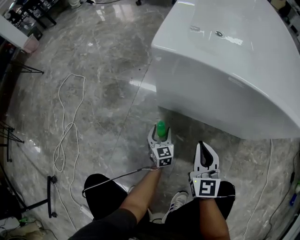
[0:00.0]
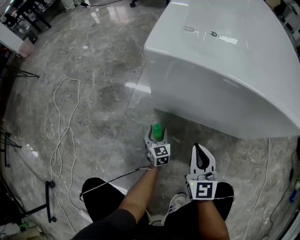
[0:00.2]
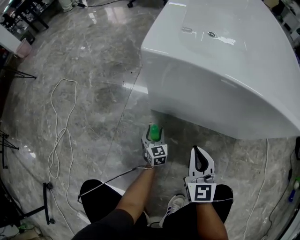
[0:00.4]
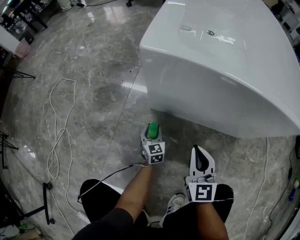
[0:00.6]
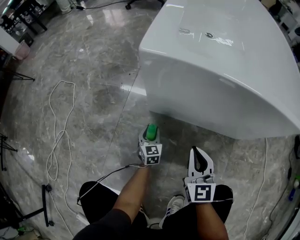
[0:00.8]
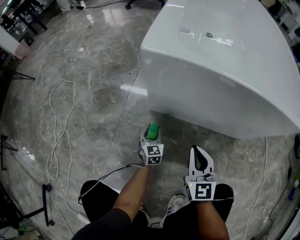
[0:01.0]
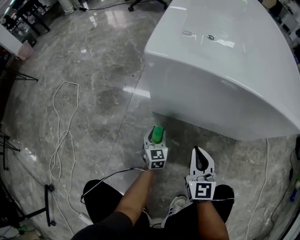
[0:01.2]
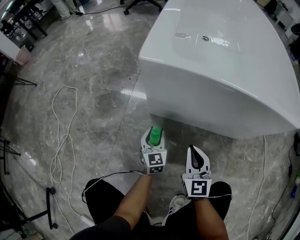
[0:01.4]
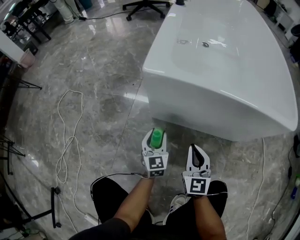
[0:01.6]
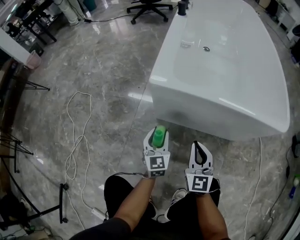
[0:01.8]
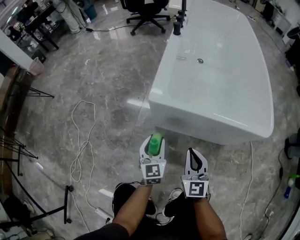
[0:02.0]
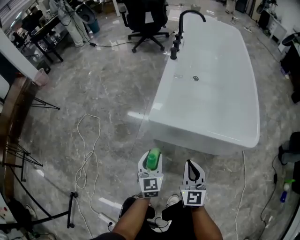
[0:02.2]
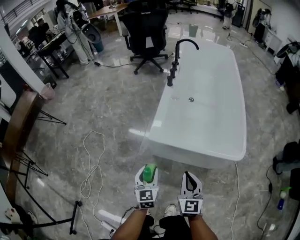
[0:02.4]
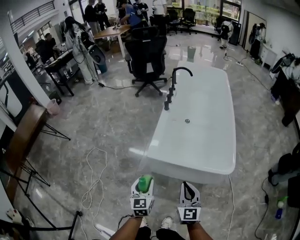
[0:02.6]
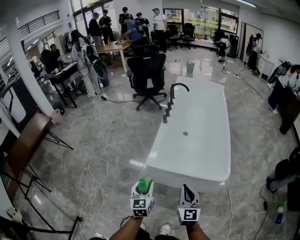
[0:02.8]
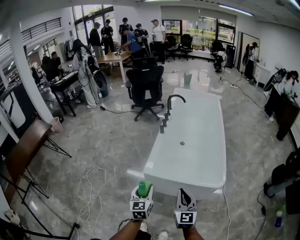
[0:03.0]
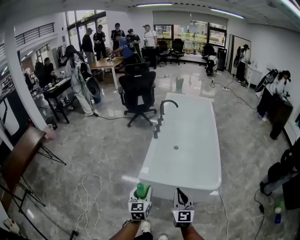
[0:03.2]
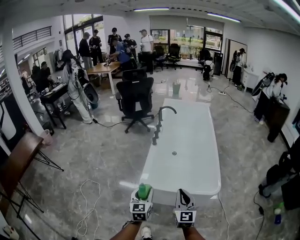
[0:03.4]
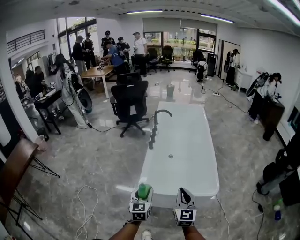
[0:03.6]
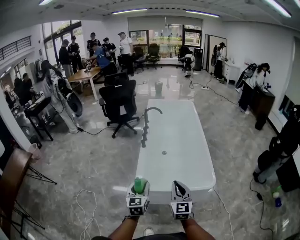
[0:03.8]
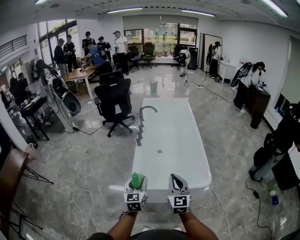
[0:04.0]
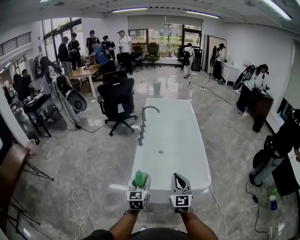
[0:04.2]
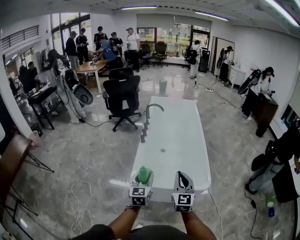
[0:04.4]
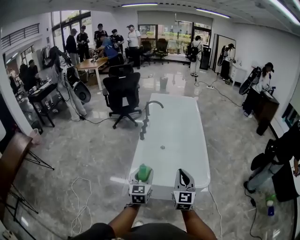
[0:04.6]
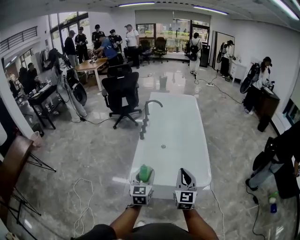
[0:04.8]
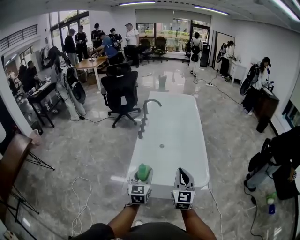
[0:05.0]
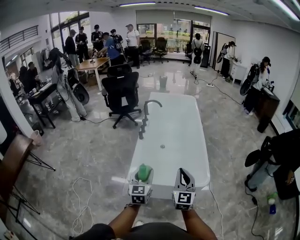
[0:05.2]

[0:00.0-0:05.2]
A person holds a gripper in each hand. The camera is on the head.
0:00.0 to 0:01.8: The left gripper is displaced upward by some 25 cm. The right gripper is displaced upward by approximately 15 cm.
0:01.8 to 0:03.4: The two grippers go some 60 cm upward.
0:03.4 to 0:05.2: Both grippers move to the right, upward and forward, approximately 10 cm.

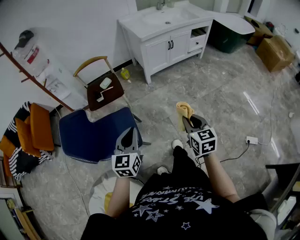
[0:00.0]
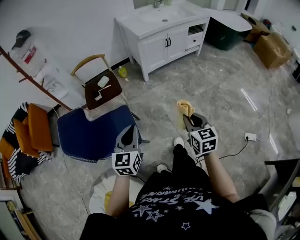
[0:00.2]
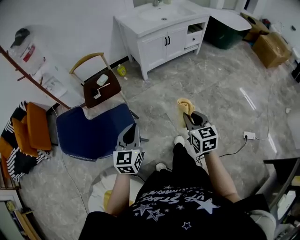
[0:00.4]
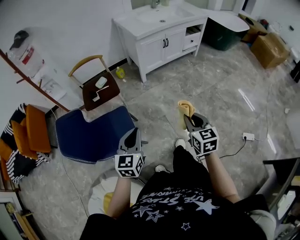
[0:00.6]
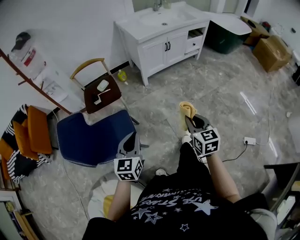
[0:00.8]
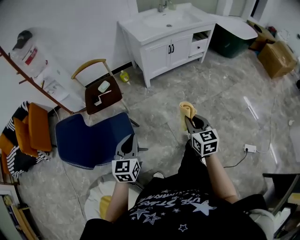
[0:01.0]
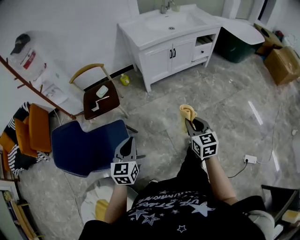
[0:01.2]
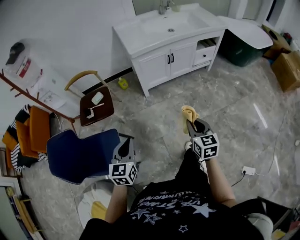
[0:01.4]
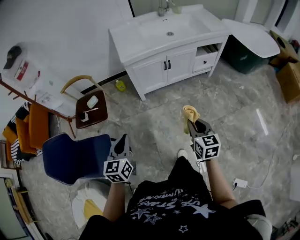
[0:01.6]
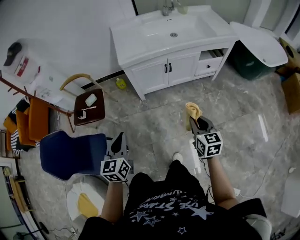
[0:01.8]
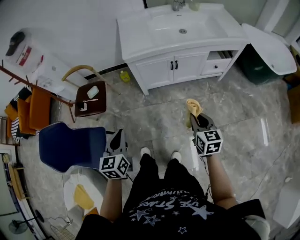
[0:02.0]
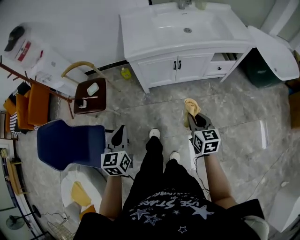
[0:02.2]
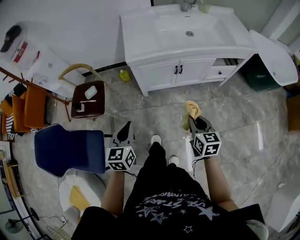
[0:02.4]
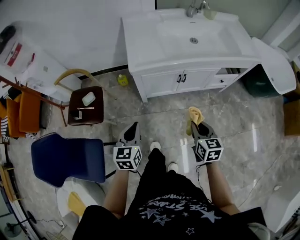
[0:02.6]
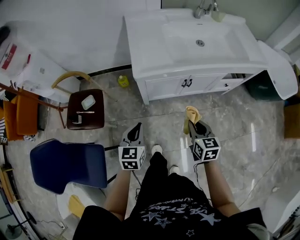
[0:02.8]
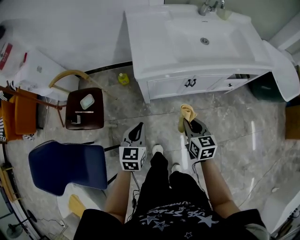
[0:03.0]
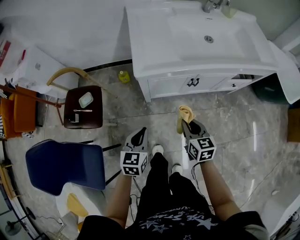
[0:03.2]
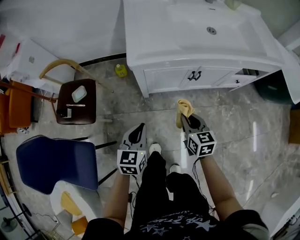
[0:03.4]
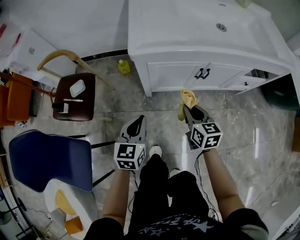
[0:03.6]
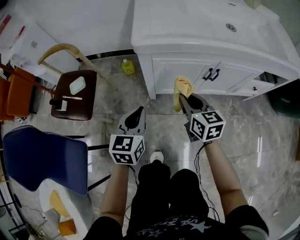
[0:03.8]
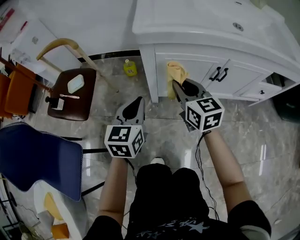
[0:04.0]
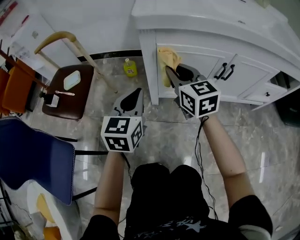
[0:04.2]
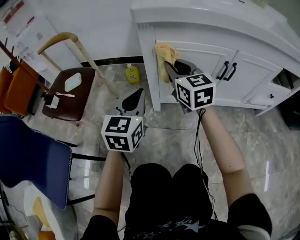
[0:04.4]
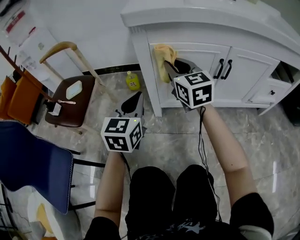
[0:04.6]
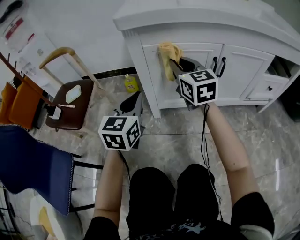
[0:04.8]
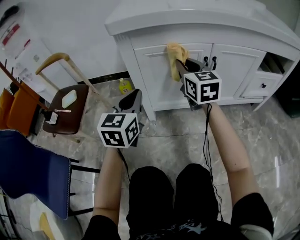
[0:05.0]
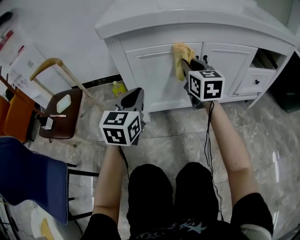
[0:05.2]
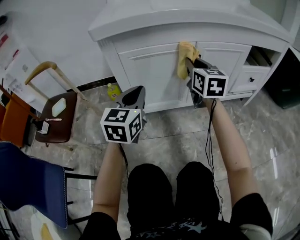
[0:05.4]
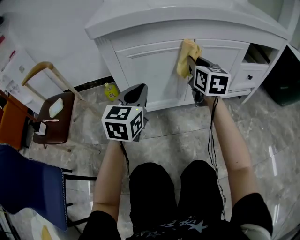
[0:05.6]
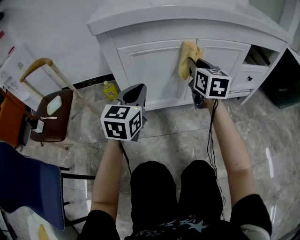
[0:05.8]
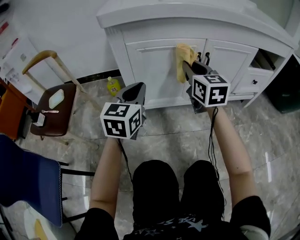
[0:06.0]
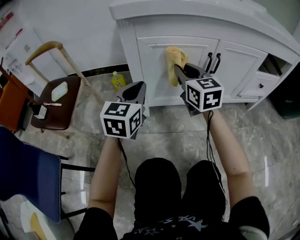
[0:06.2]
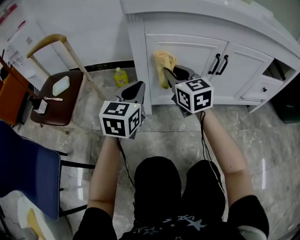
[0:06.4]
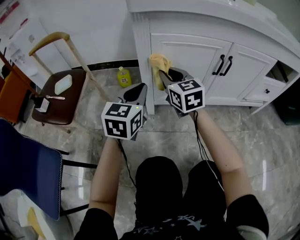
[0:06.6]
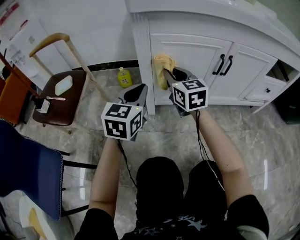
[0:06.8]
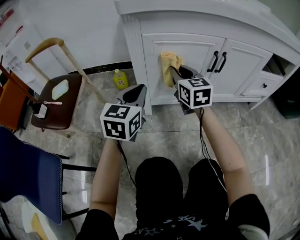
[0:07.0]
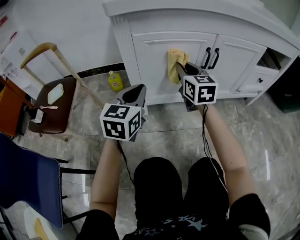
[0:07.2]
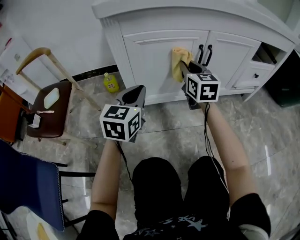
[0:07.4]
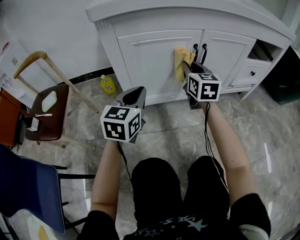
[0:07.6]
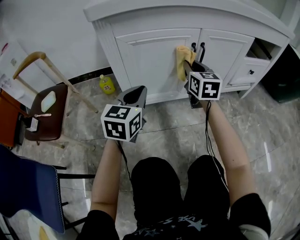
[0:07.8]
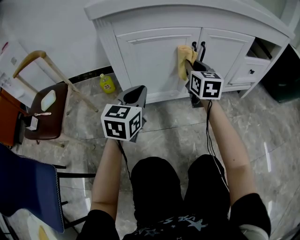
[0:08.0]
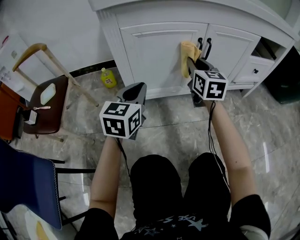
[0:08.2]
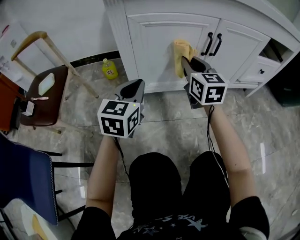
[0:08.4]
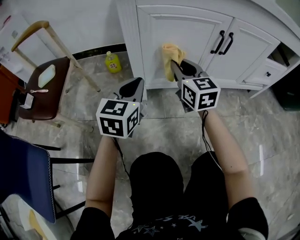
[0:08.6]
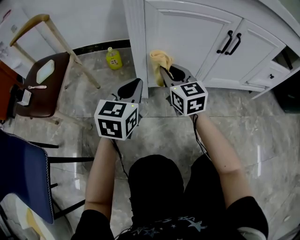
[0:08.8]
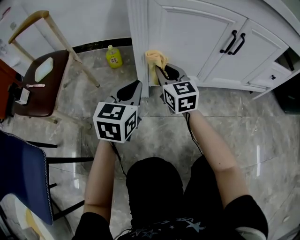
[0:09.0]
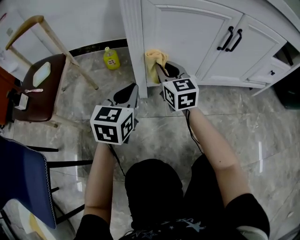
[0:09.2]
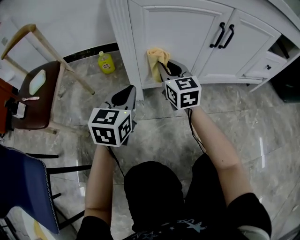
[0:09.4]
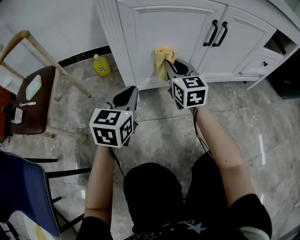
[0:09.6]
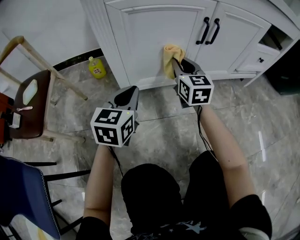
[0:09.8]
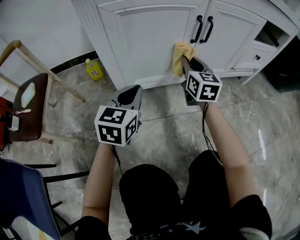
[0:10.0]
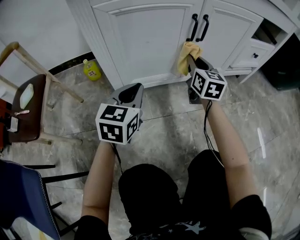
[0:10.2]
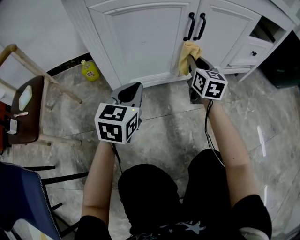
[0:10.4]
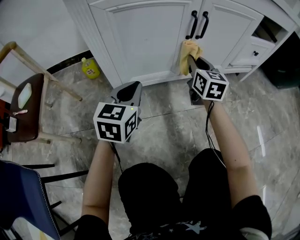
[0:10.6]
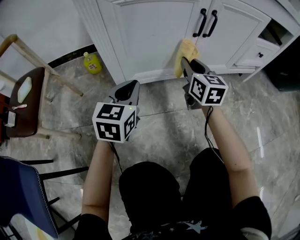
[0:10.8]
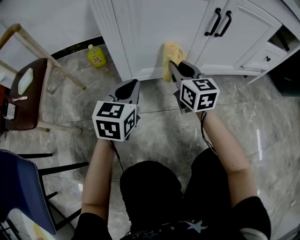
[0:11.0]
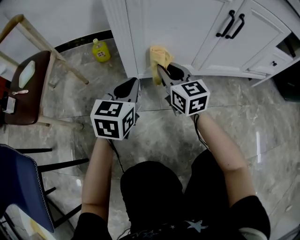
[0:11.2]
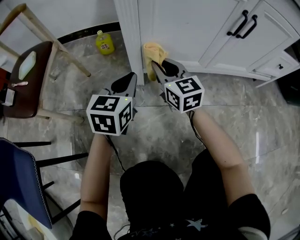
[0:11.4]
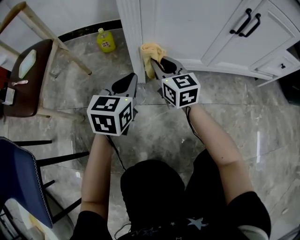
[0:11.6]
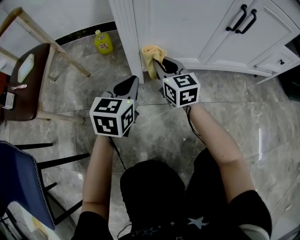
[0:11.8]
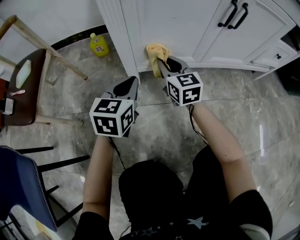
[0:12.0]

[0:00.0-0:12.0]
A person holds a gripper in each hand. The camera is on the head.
0:00.0 to 0:01.6: Both grippers travel together forward and to the right, approximately 40 cm.
0:01.6 to 0:03.0: The right gripper goes roughly 35 cm forward, while the left gripper goes approximately 35 cm forward and downward.
0:03.0 to 0:04.4: The right gripper moves forward, downward and to the left, roughly 30 cm, and rotates roughly 30 degrees. The left gripper travels downward by about 25 cm.
0:04.4 to 0:06.0: The left gripper travels to the right by some 10 cm; the right gripper goes about 15 cm to the right.
0:06.0 to 0:07.6: The right gripper shifts approximately 5 cm downward, and goes to the left and returns, some 15 cm each way, while the left gripper goes to the left and returns, approximately 5 cm each way.
0:07.6 to 0:09.0: The left gripper travels to the left and downward by about 10 cm. Meanwhile the right gripper moves to the left and downward, approximately 25 cm.
0:09.0 to 0:10.4: The left gripper shifts about 10 cm to the right. The right gripper moves to the right, roughly 25 cm, and swivels roughly 30 degrees.
0:10.4 to 0:12.0: The right gripper travels to the left and downward by about 25 cm, and rotates some 30 degrees; the left gripper heads to the left and downward, covering some 10 cm.

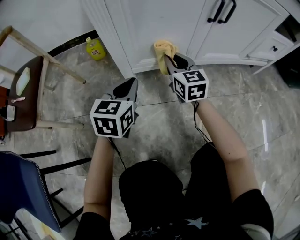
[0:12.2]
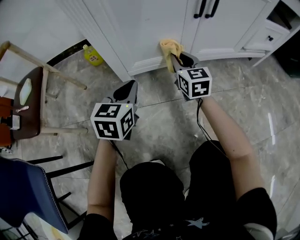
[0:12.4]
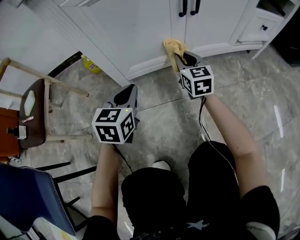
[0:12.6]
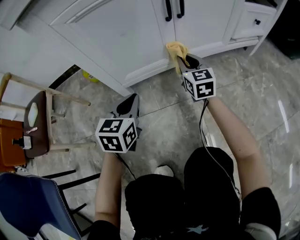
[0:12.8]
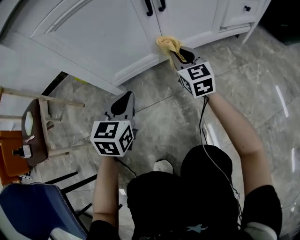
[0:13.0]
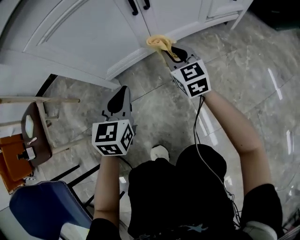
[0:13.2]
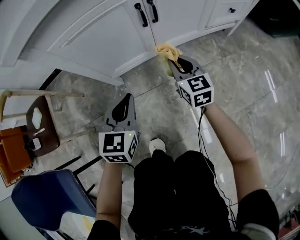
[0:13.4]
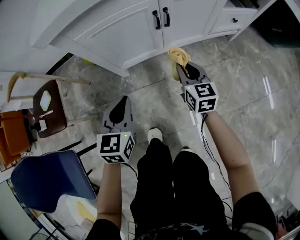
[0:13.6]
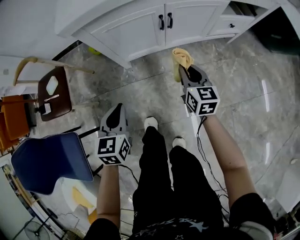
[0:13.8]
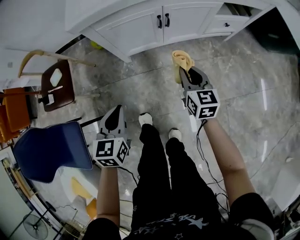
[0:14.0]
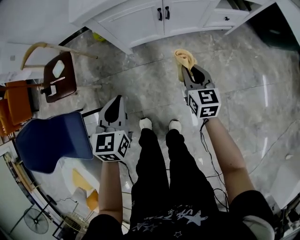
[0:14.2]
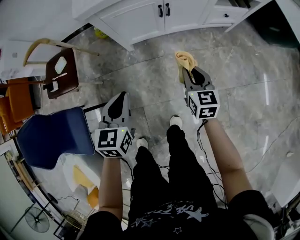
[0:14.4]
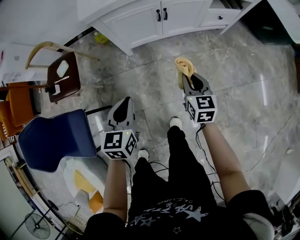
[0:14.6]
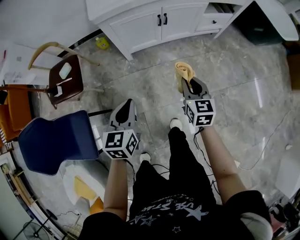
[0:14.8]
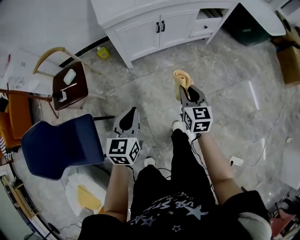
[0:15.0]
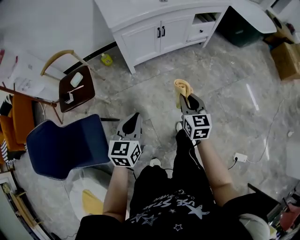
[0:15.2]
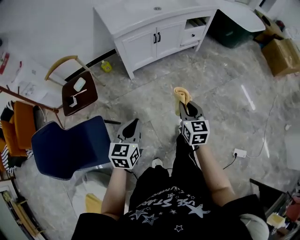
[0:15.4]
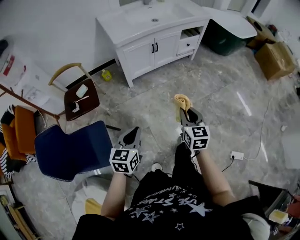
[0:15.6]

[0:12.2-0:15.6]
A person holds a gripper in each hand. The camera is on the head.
0:12.2 to 0:13.8: The left gripper is displaced upward and backward by some 35 cm, while the right gripper heads upward, to the right and backward, covering roughly 35 cm.
0:13.8 to 0:15.6: The pair of grippers is taken backward, approximately 50 cm. The two grippers go about 30 cm upward. The left gripper changes its angle by about 20 degrees.

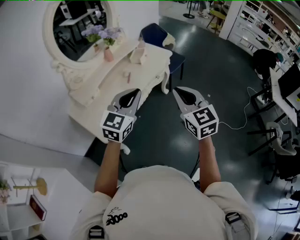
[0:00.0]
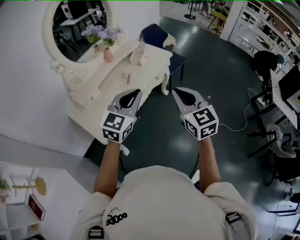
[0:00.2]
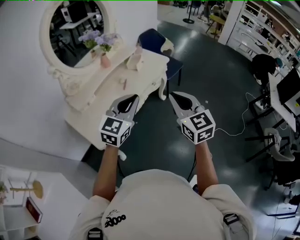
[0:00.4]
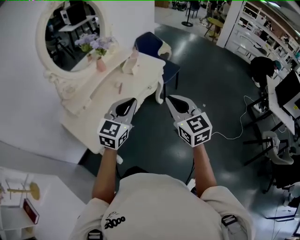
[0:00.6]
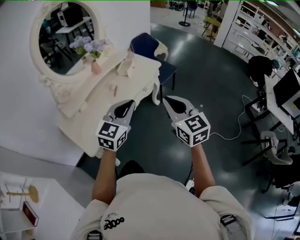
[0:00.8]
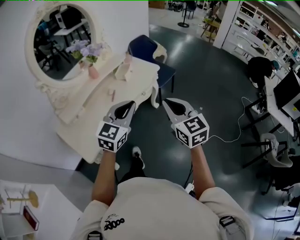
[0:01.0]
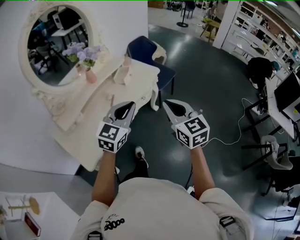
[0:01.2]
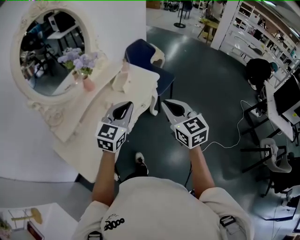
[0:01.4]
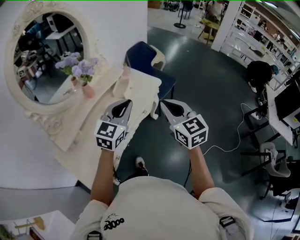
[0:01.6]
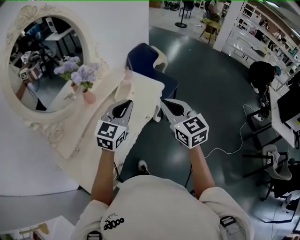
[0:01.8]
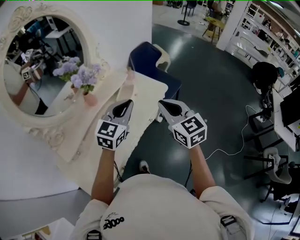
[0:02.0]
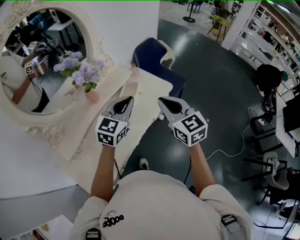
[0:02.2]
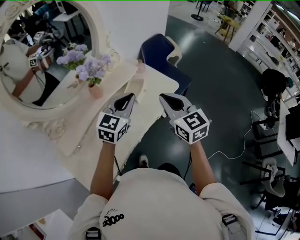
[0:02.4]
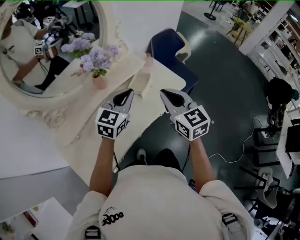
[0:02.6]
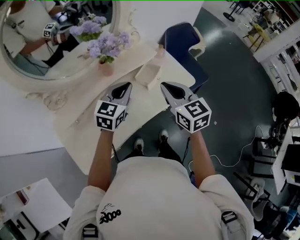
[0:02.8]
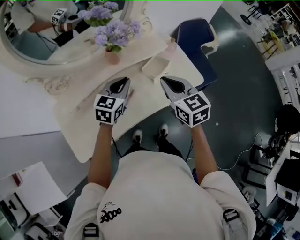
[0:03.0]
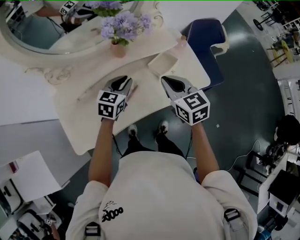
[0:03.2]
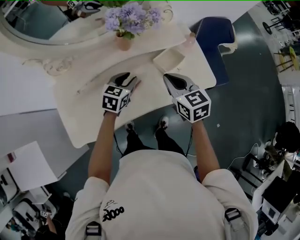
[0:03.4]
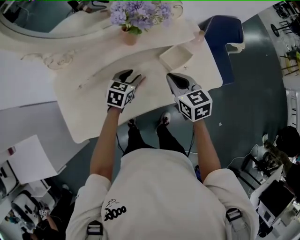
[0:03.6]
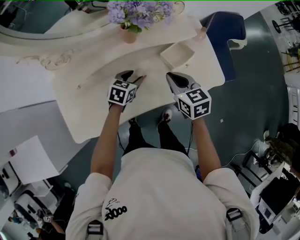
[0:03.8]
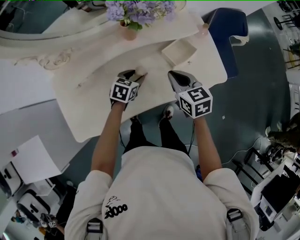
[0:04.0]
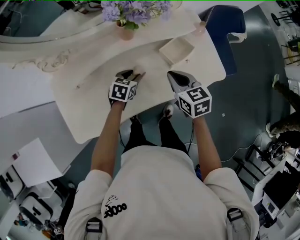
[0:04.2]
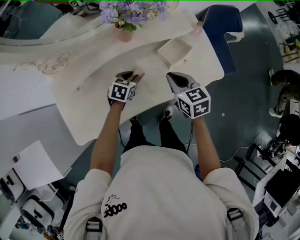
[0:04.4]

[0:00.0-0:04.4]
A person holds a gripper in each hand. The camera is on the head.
0:00.0 to 0:01.4: The two grippers go about 20 cm forward.
0:01.4 to 0:03.0: The left gripper ends up approximately 30 cm from where it was, and turns by some 30 degrees; the right gripper shifts by approximately 35 cm, and swivels about 30 degrees.
0:03.0 to 0:04.4: The left gripper is displaced downward by about 20 cm, swivels approximately 30 degrees, and opens. Meanwhile the right gripper is displaced downward by about 15 cm.
